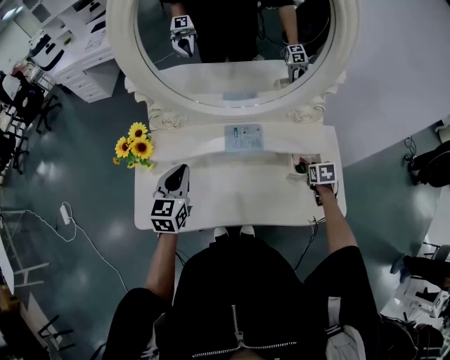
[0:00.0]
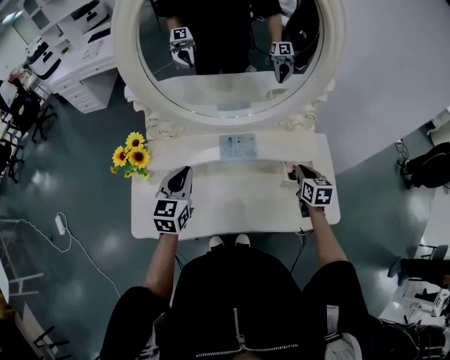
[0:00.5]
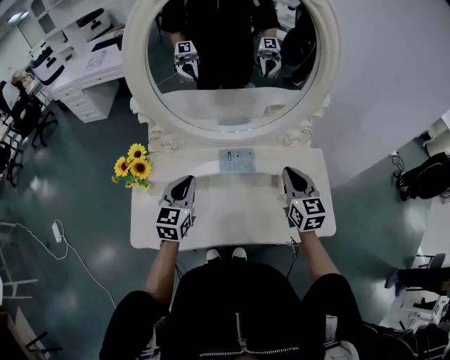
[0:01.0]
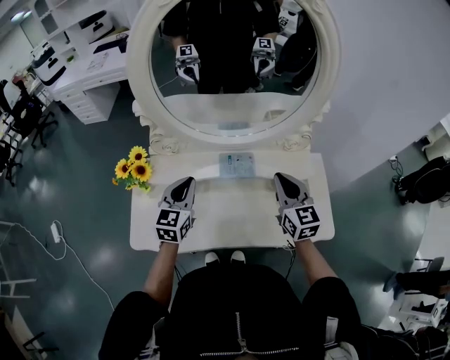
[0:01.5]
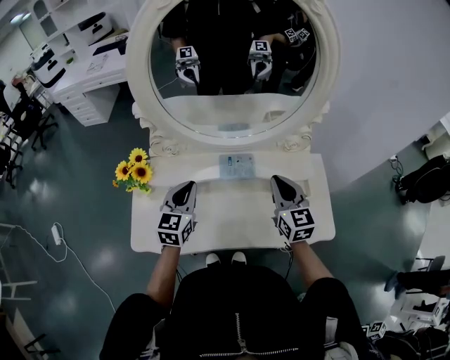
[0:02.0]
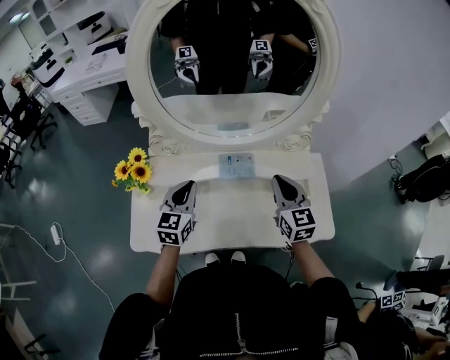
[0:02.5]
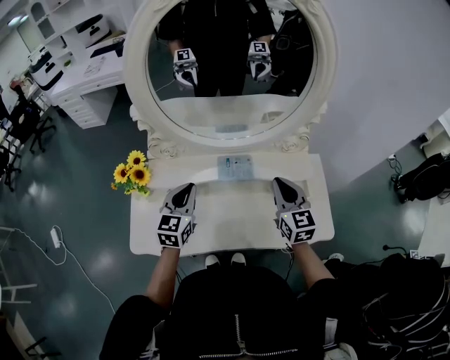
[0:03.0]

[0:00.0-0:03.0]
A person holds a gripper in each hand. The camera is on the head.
0.0 to 1.5 s: The right gripper travels upward and to the left by approximately 30 cm, and angles its fingers upward, by roughly 50 degrees.
1.5 to 3.0 s: There are only small adjustments of the grippers.

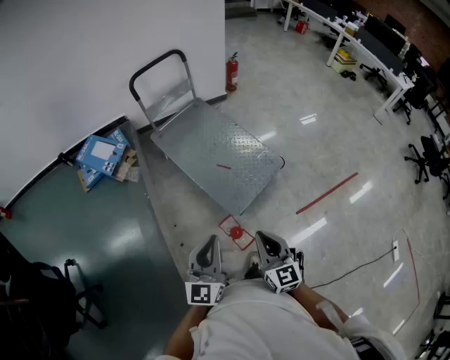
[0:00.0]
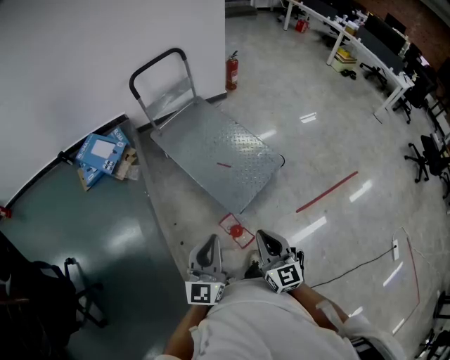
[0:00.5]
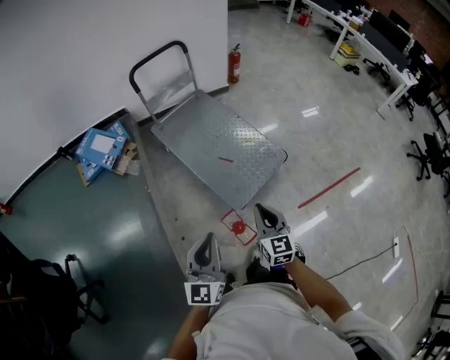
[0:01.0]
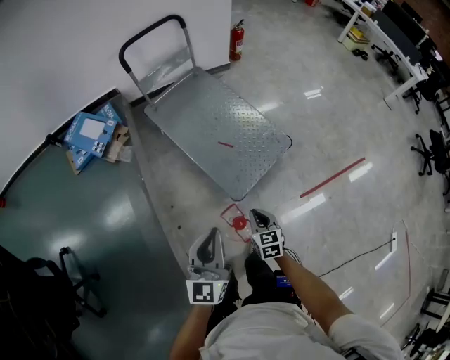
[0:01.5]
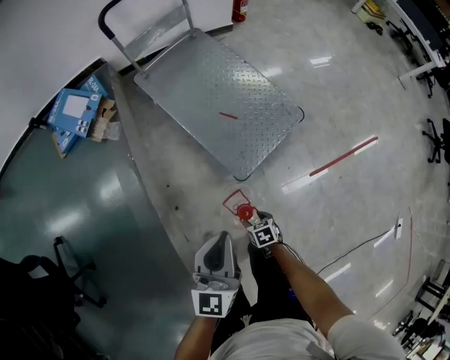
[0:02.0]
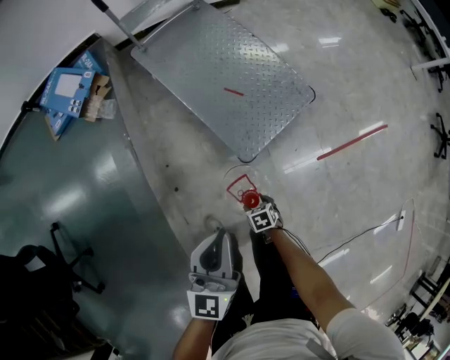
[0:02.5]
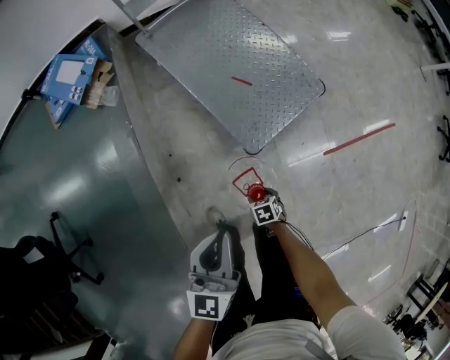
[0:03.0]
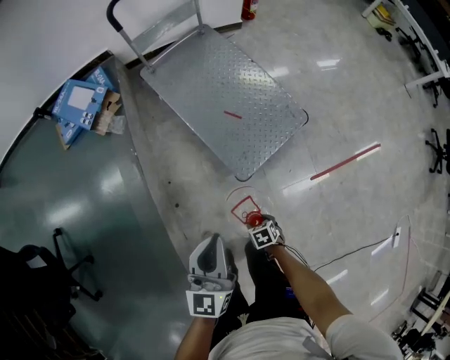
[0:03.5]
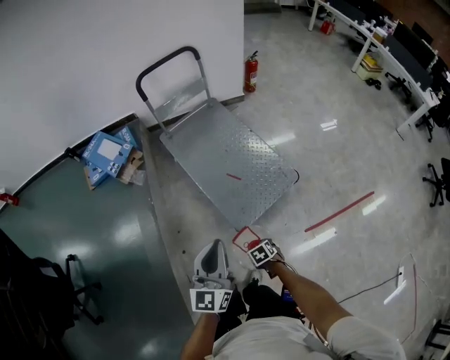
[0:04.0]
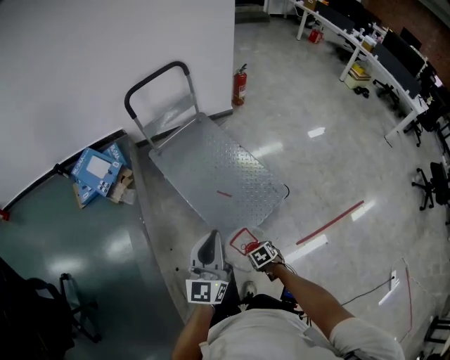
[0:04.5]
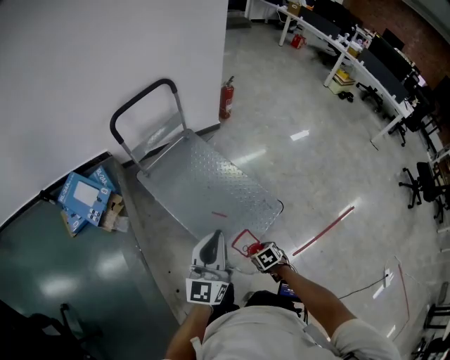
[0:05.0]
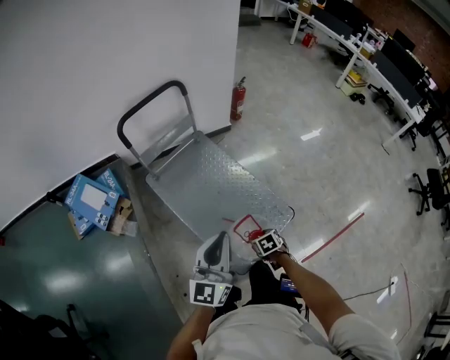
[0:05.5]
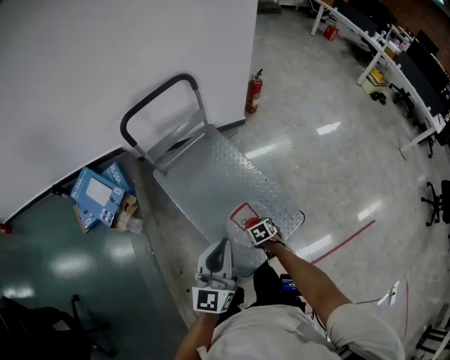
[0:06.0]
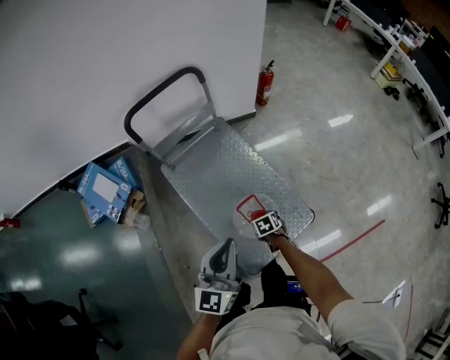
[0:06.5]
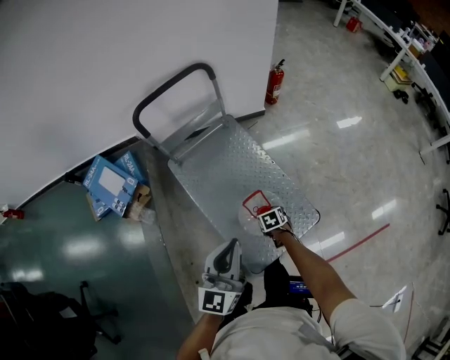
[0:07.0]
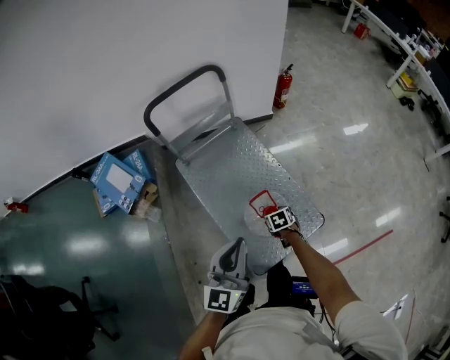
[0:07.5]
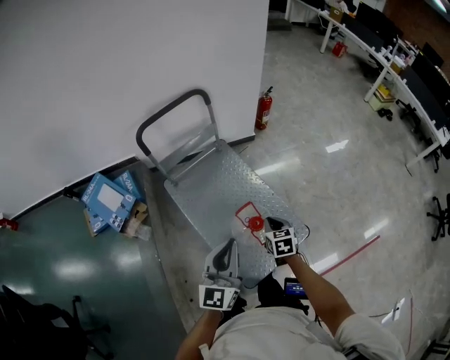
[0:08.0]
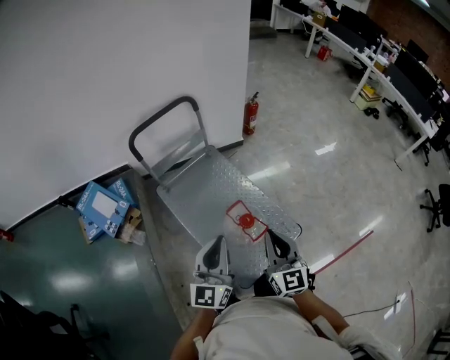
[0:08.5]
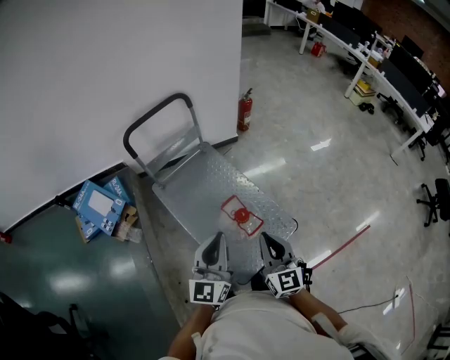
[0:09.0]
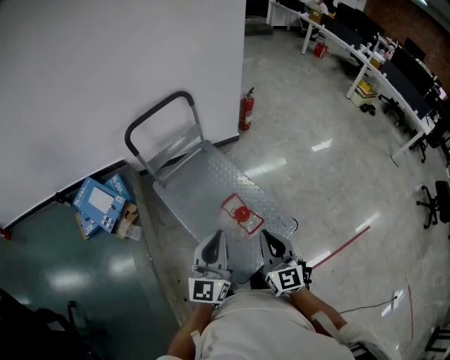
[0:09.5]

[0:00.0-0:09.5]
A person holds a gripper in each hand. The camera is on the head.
0.0 to 2.0 s: The left gripper heads downward and forward, covering roughly 15 cm; the right gripper travels downward by some 40 cm, tilts its fingers about 60 degrees downward, and opens.
2.0 to 4.0 s: Both grippers travel together upward, roughly 10 cm.
4.0 to 5.5 s: The two grippers go approximately 30 cm forward.
5.5 to 7.5 s: The left gripper is displaced forward by roughly 10 cm; the right gripper heads forward, covering approximately 20 cm.
7.5 to 9.5 s: The left gripper ends up approximately 5 cm from where it was; the right gripper moves upward and backward, some 40 cm, tips its fingers upward by some 60 degrees, and closes its fingers.

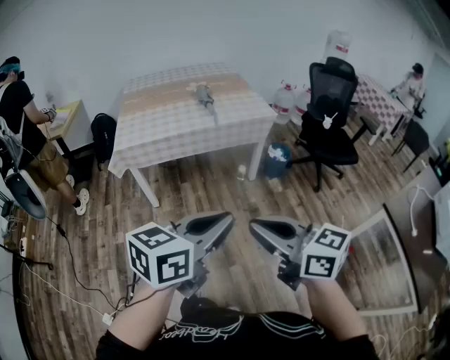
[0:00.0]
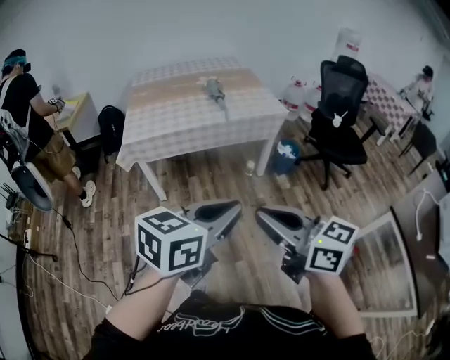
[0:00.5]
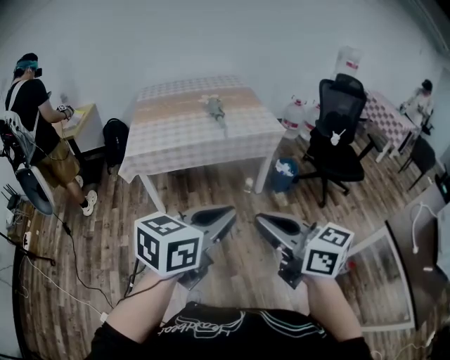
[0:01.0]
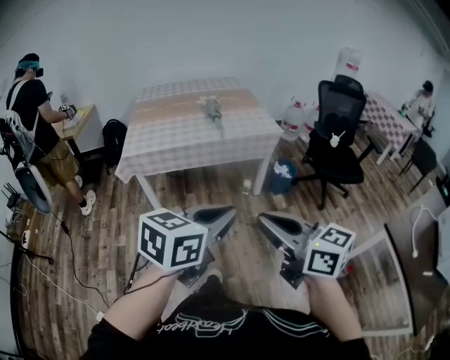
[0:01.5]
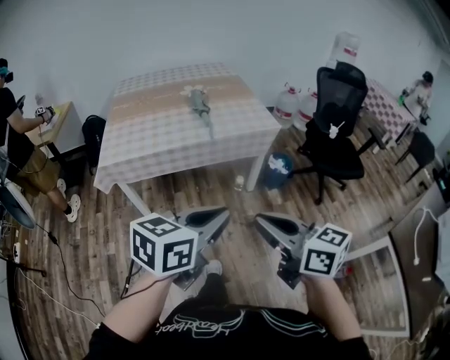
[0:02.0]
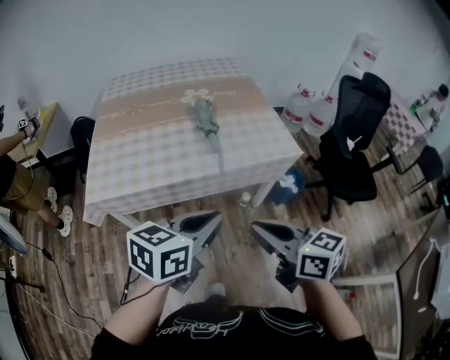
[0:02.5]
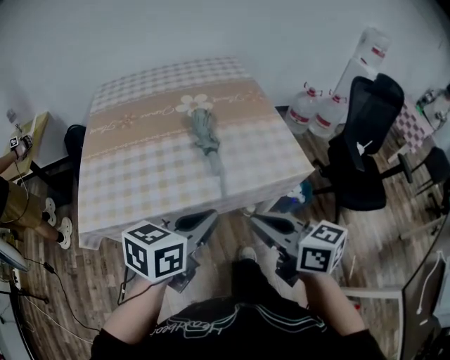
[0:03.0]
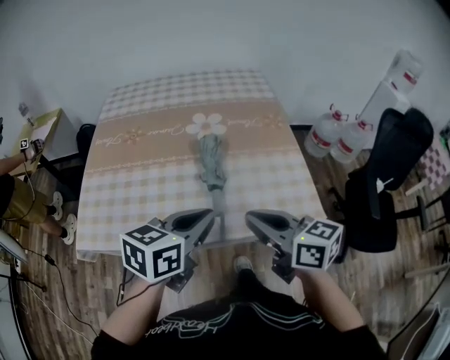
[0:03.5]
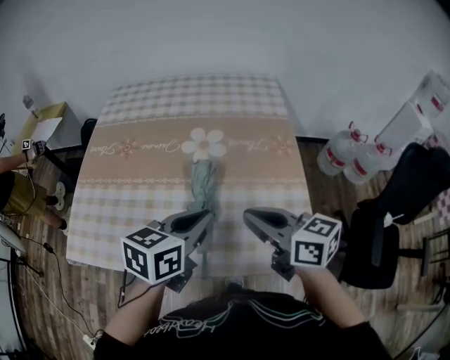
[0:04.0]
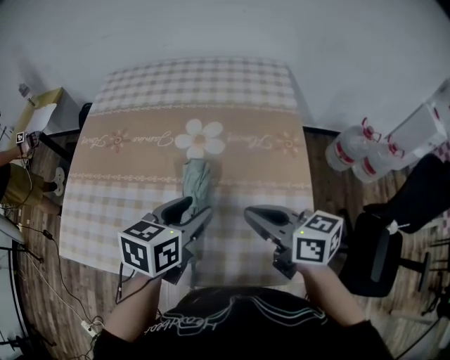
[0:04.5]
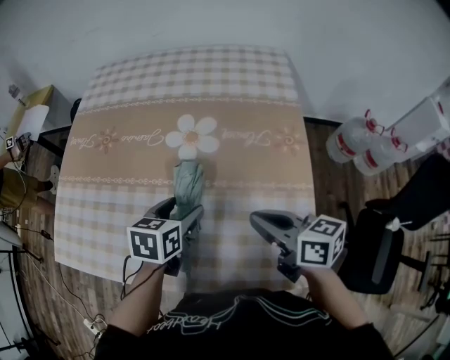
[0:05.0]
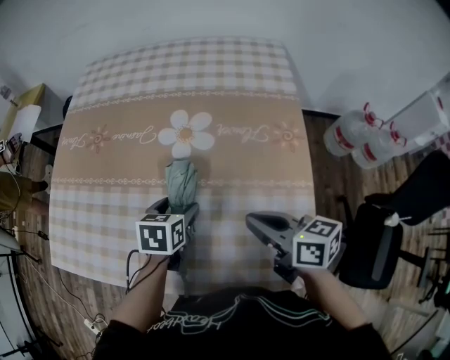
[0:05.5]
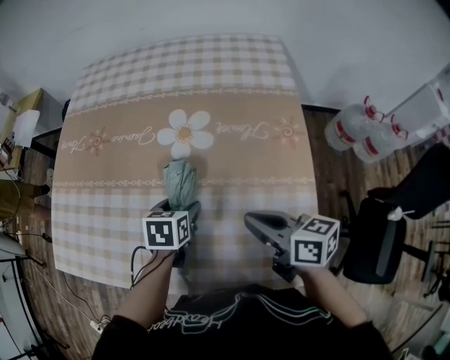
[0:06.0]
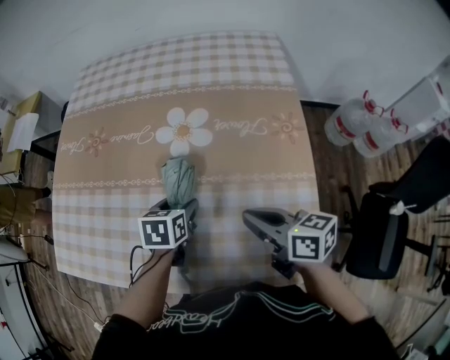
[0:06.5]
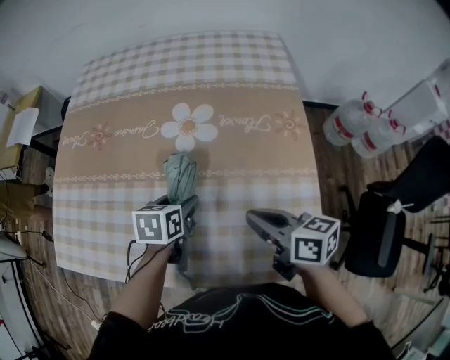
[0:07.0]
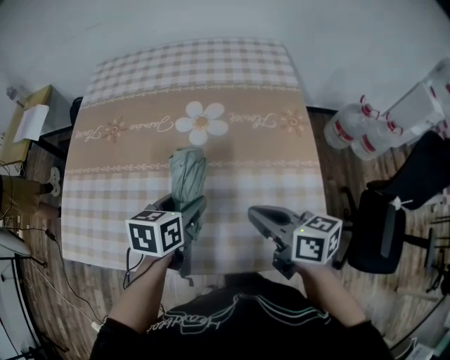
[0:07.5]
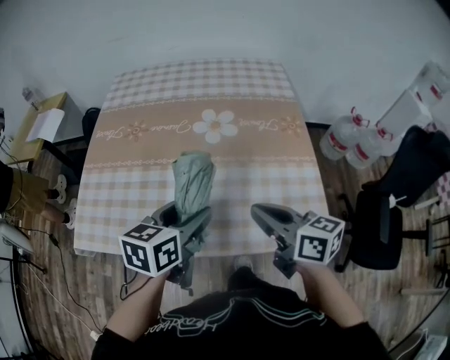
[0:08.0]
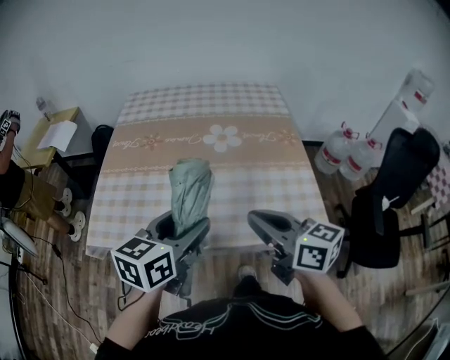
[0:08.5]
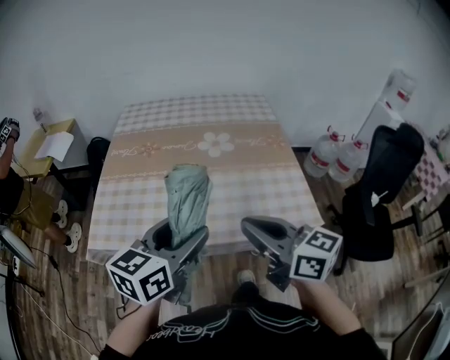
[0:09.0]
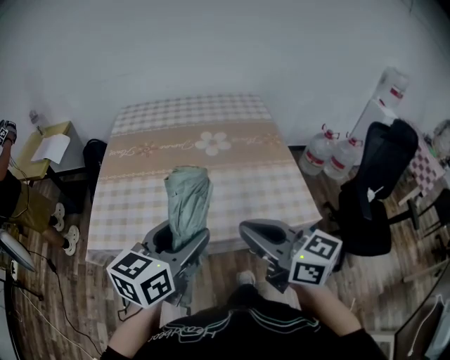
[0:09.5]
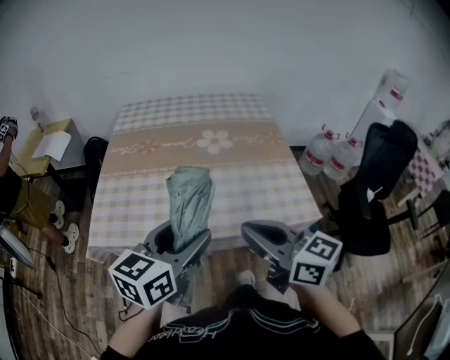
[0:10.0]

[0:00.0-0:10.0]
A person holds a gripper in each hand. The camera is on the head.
0.0 to 2.0 s: The two grippers go roughly 20 cm forward.
2.0 to 4.0 s: The pair of grippers is taken forward, roughly 70 cm. The left gripper changes its angle by roughly 20 degrees. The right gripper swivels roughly 20 degrees.
4.0 to 6.0 s: The left gripper goes some 25 cm downward and forward, tips its fingers downward by some 30 degrees, and opens its fingers. The right gripper goes roughly 15 cm downward, forward and to the right.
6.0 to 8.0 s: The right gripper is displaced to the left, backward and upward by some 20 cm, while the left gripper travels upward, backward and to the left by some 25 cm, and swivels about 30 degrees.
8.0 to 10.0 s: Both grippers travel together backward, upward and to the left, some 25 cm. The left gripper changes its angle by roughly 20 degrees.

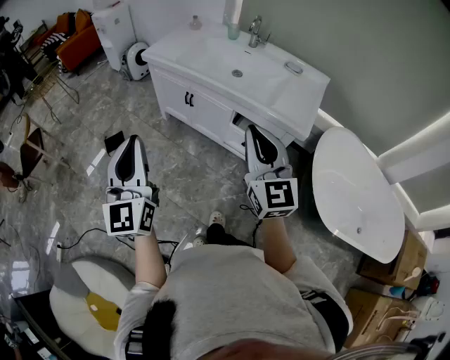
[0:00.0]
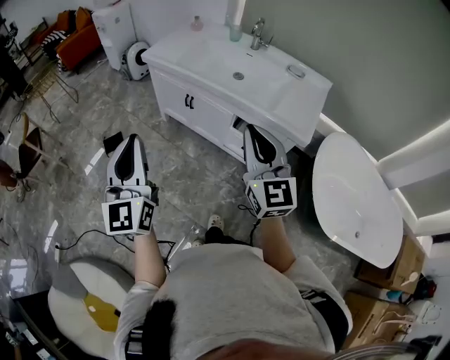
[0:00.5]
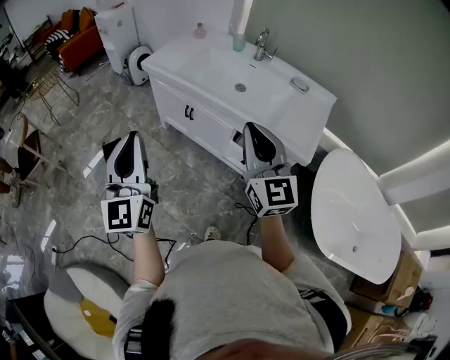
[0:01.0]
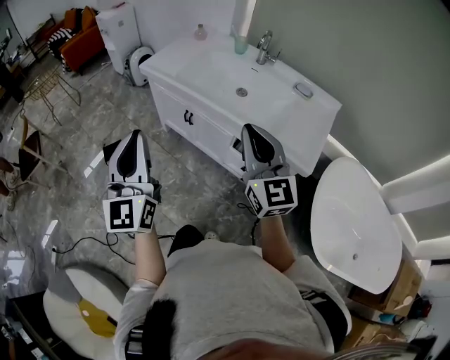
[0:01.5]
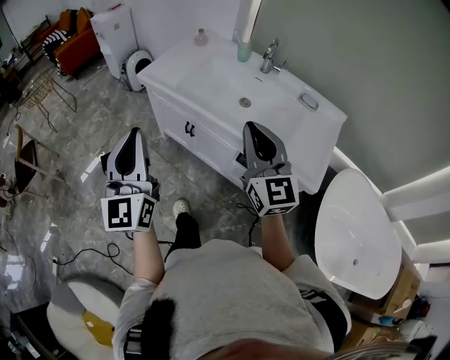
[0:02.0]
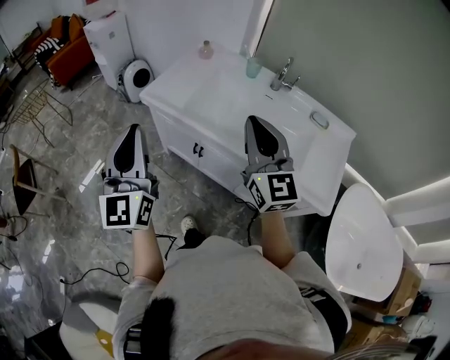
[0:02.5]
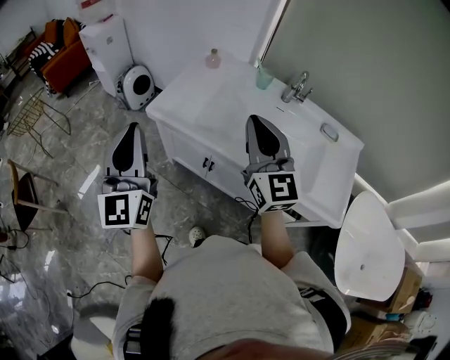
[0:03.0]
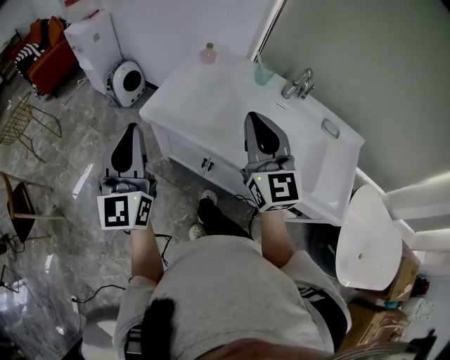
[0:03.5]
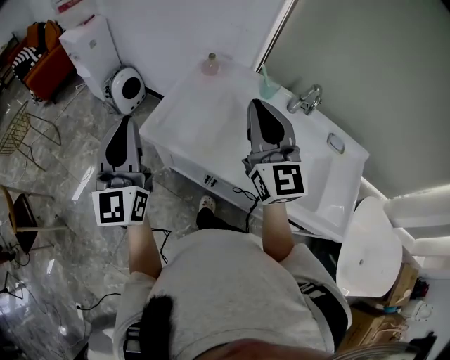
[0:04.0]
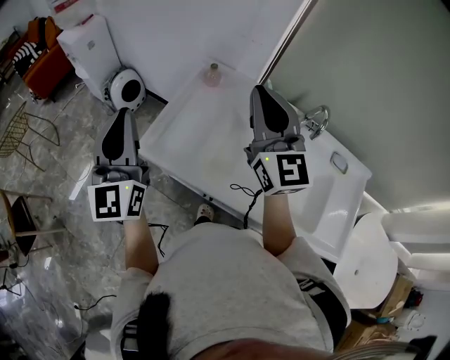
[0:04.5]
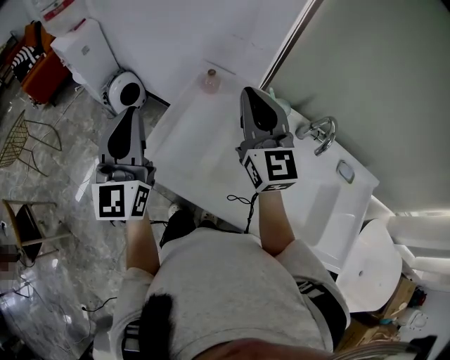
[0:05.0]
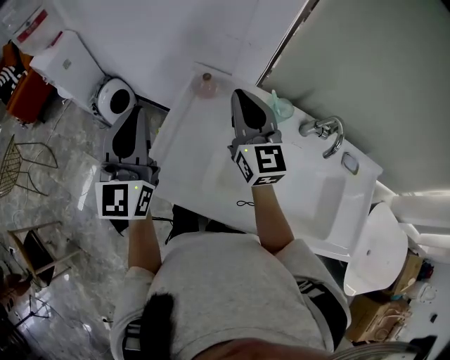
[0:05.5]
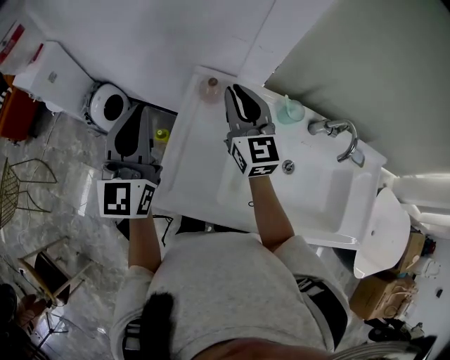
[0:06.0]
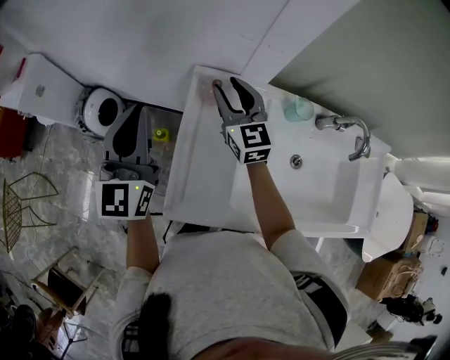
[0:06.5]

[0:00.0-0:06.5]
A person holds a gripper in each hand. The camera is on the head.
0.0 to 2.0 s: The grippers both shift forward by some 25 cm.
2.0 to 4.5 s: The pair of grippers is taken forward, roughly 50 cm.
4.5 to 6.5 s: The left gripper goes about 30 cm forward, and rotates about 30 degrees. The right gripper shifts approximately 35 cm forward and downward, swivels some 20 degrees, and opens up.
